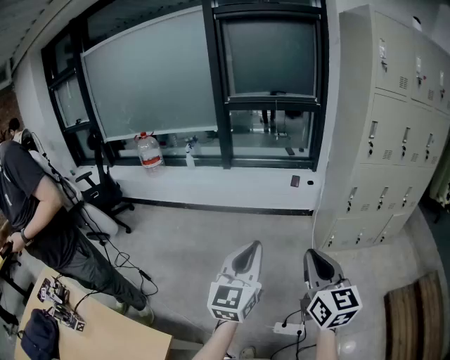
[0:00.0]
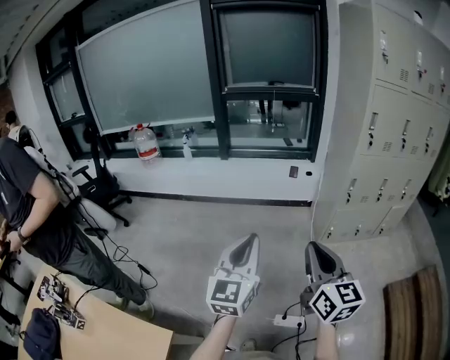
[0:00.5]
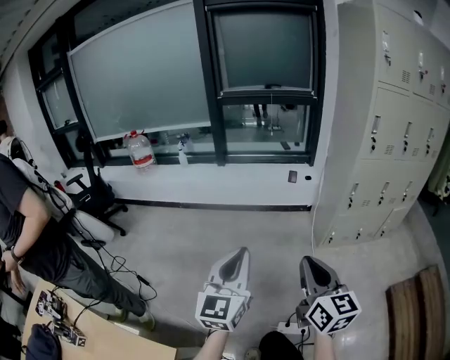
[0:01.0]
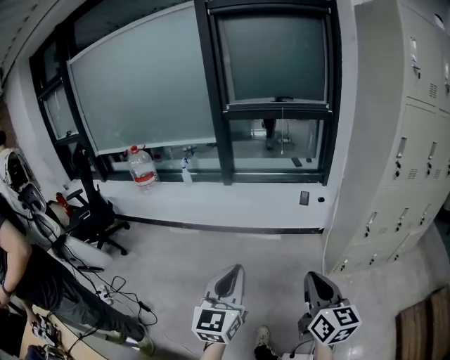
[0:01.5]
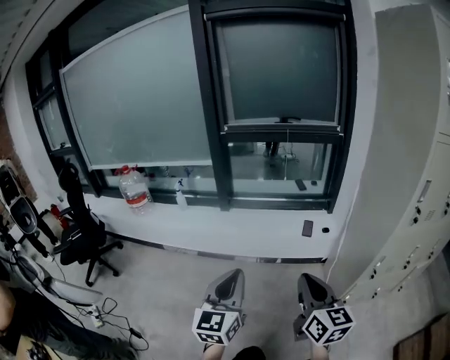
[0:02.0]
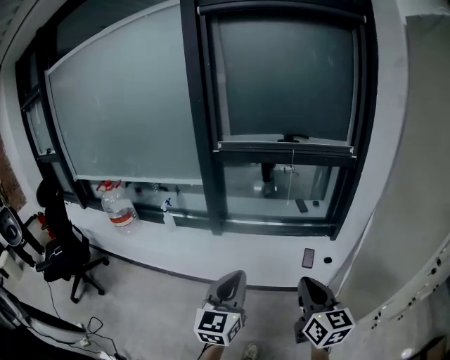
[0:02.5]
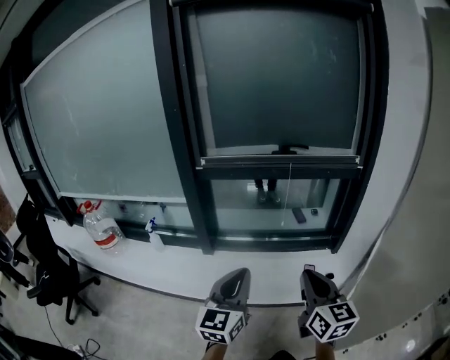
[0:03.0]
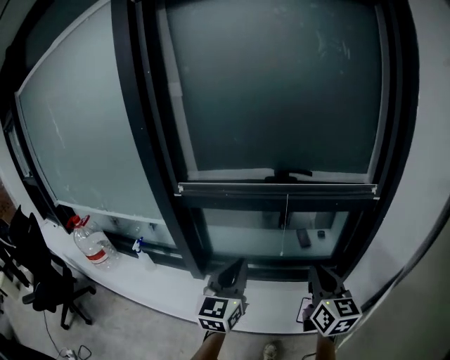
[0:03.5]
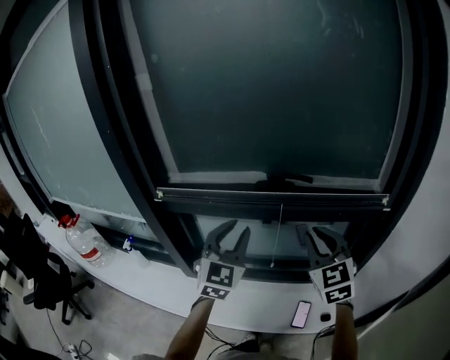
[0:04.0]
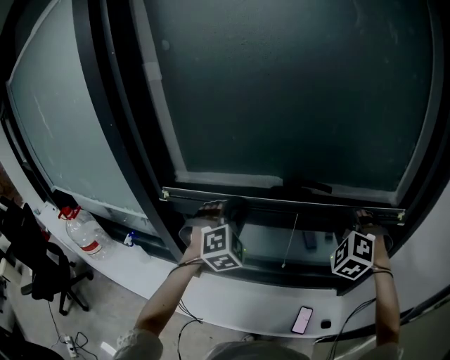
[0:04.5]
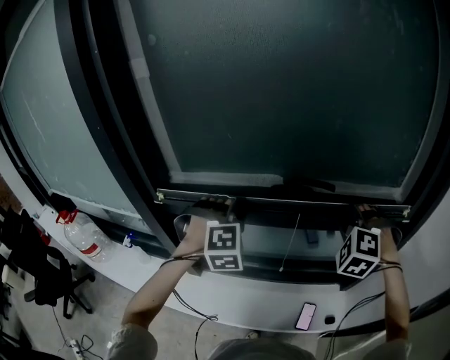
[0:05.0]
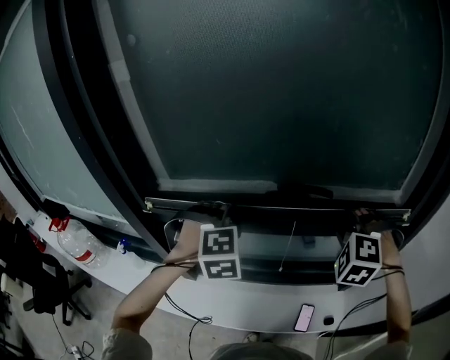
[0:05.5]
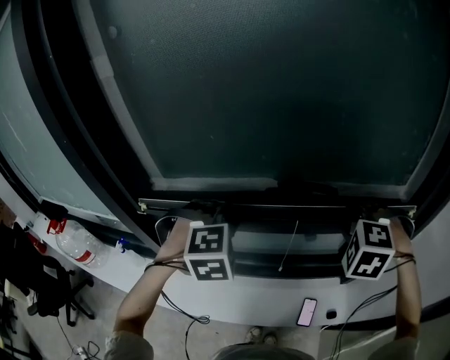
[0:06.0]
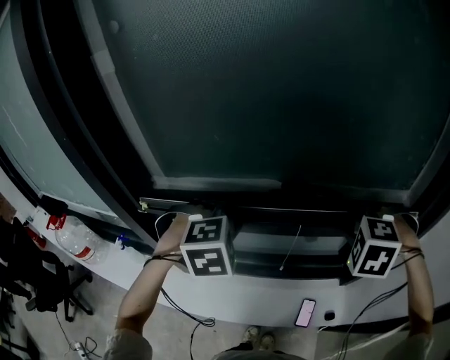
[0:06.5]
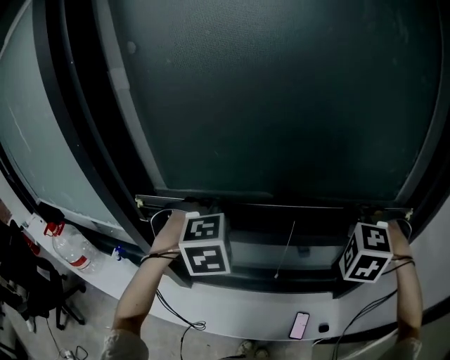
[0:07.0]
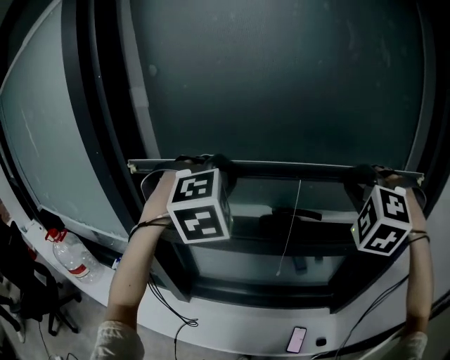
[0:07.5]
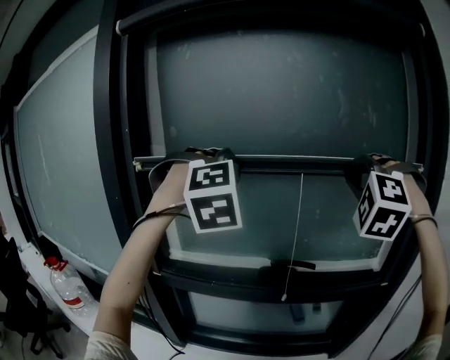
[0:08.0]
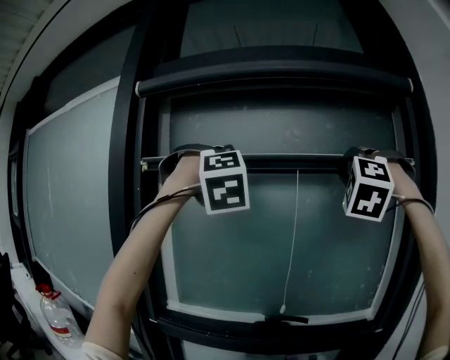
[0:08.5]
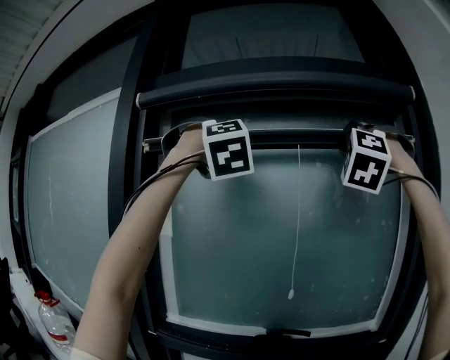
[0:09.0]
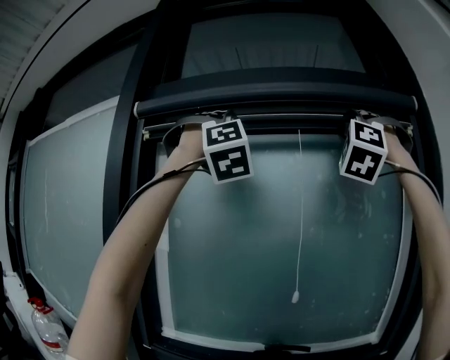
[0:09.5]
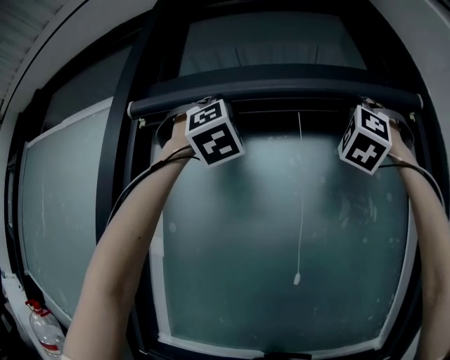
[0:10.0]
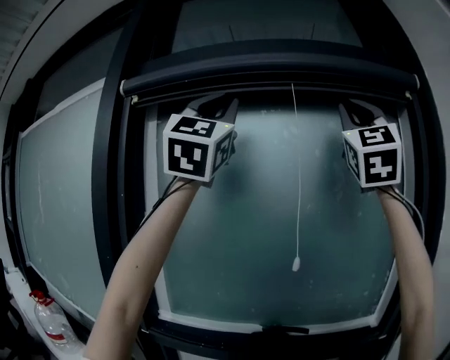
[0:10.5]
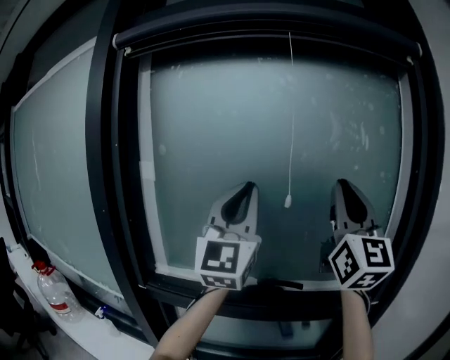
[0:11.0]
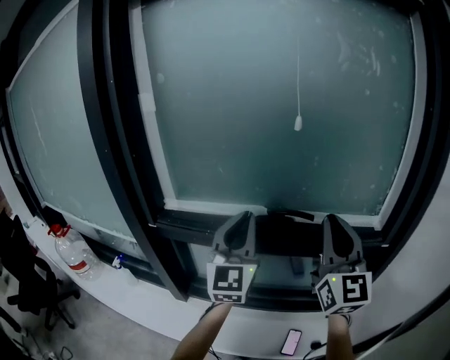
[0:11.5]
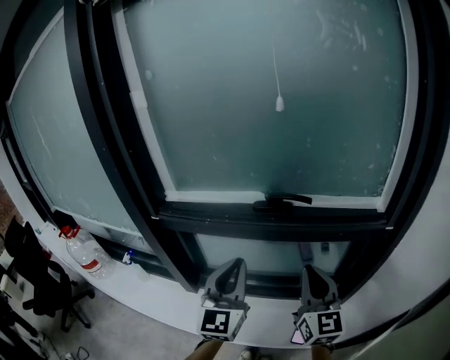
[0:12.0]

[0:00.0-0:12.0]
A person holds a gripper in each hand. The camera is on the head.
0:00.0 to 0:02.0: The two grippers go about 40 cm forward.
0:02.0 to 0:04.0: The two grippers travel together, forward, some 80 cm. The left gripper swivels roughly 30 degrees; the right gripper swivels some 40 degrees.
0:04.0 to 0:06.0: The grippers both shift forward by approximately 10 cm. The left gripper angles its fingers downward, by roughly 50 degrees, while the right gripper points its fingers some 40 degrees further downward.
0:06.0 to 0:08.0: The two grippers go roughly 35 cm upward. The left gripper angles its fingers upward, by roughly 30 degrees, while the right gripper tips its fingers upward by about 40 degrees.
0:08.0 to 0:10.0: The grippers both shift upward by some 35 cm. The right gripper tilts its fingers roughly 40 degrees upward; the left gripper points its fingers about 40 degrees further upward.
0:10.0 to 0:12.0: Both grippers travel together downward, approximately 70 cm. The left gripper rolls counterclockwise, seen from behind, by about 80 degrees. The right gripper rolls clockwise, seen from behind, by roughly 90 degrees.

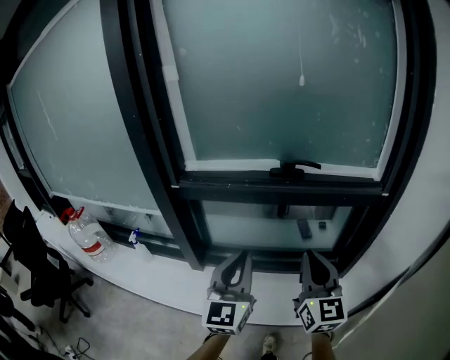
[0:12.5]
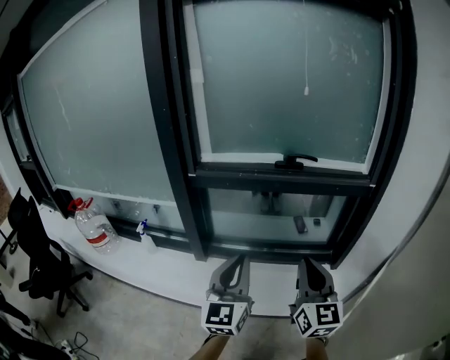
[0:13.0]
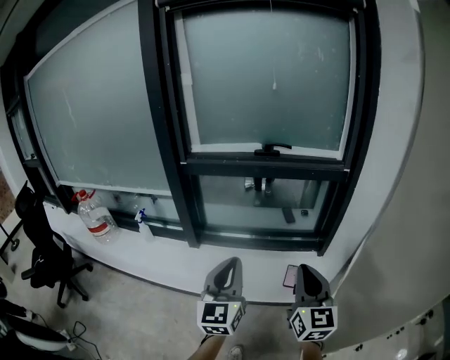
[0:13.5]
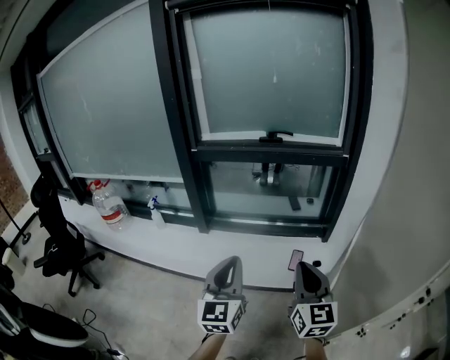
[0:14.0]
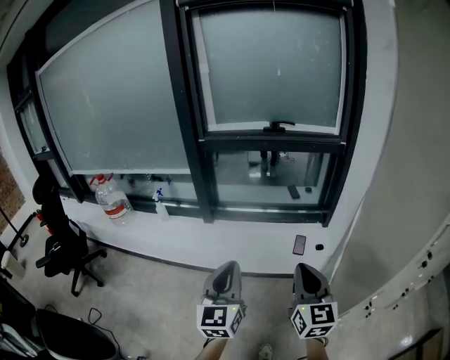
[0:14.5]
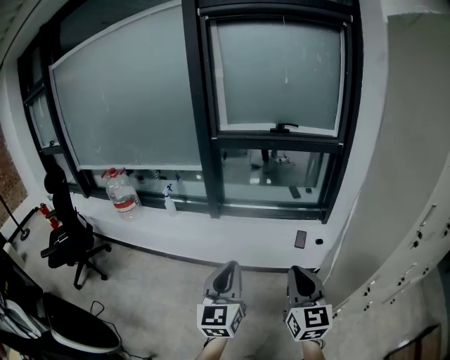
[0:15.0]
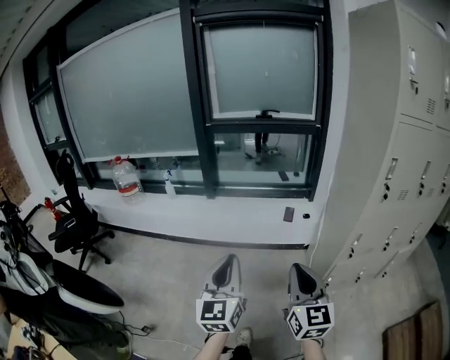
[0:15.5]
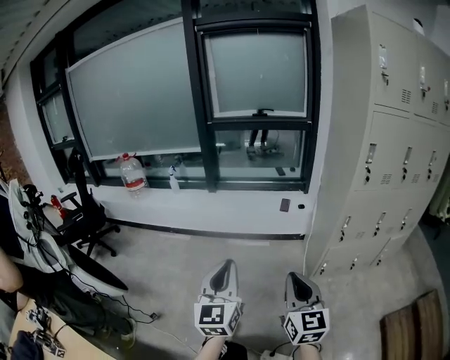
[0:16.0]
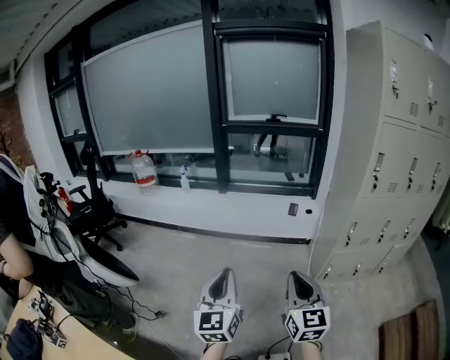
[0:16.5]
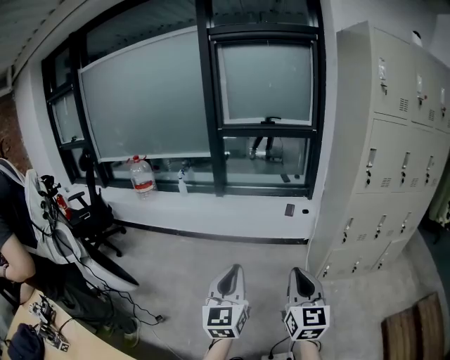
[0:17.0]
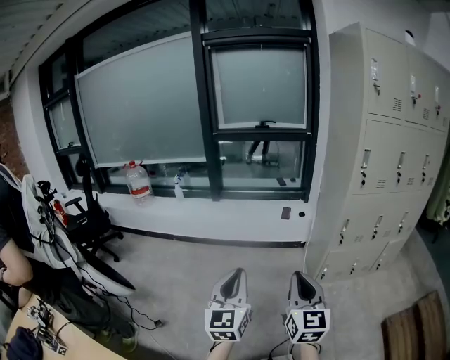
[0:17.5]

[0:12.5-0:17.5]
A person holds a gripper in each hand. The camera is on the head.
0:12.5 to 0:15.0: The two grippers travel together, backward, roughly 60 cm.
0:15.0 to 0:17.5: Both grippers are carried backward, roughly 40 cm.

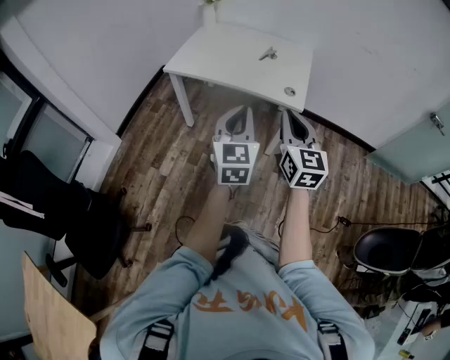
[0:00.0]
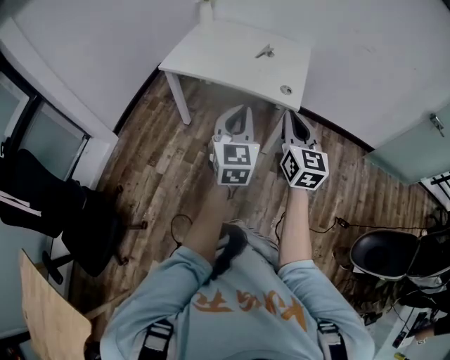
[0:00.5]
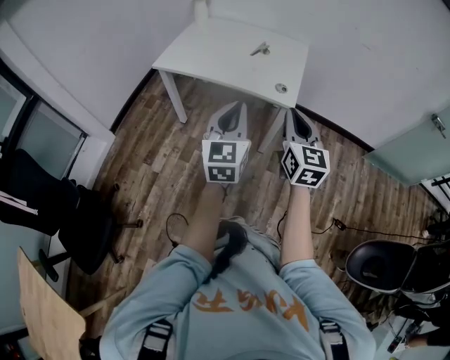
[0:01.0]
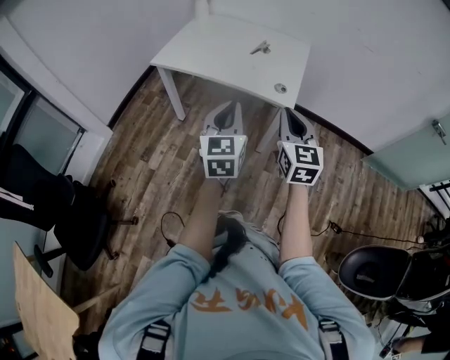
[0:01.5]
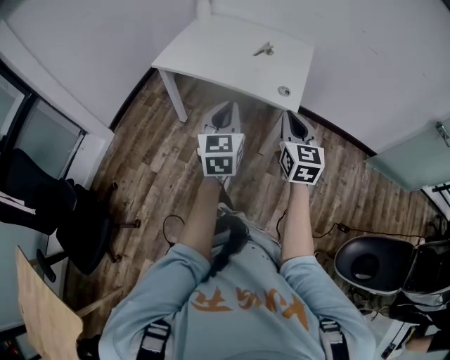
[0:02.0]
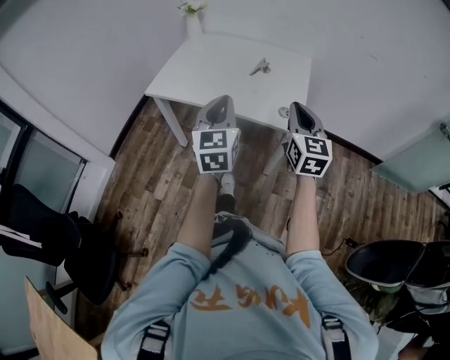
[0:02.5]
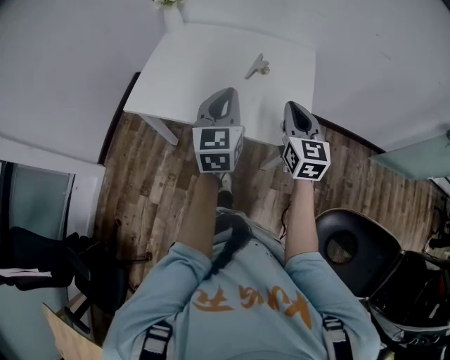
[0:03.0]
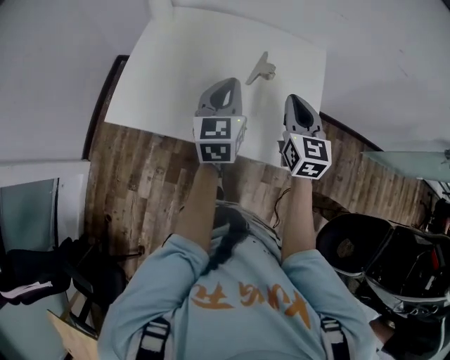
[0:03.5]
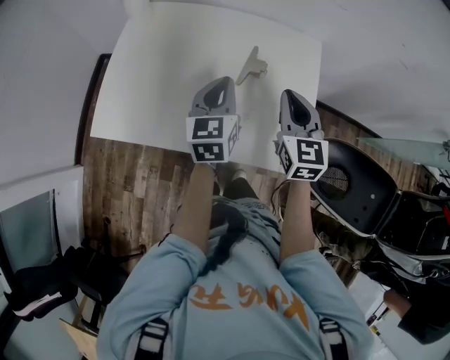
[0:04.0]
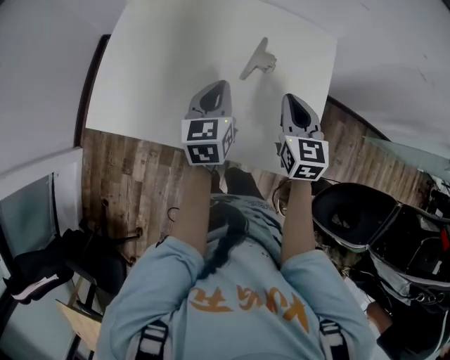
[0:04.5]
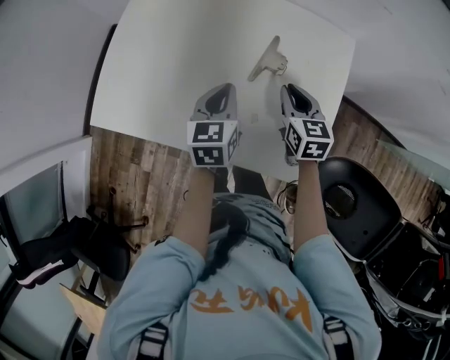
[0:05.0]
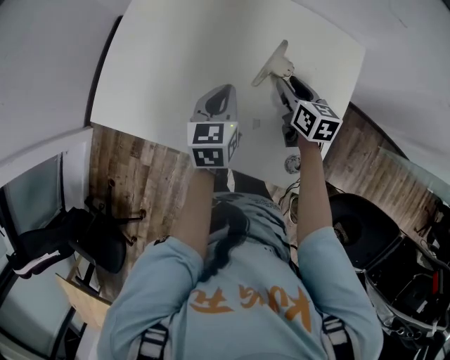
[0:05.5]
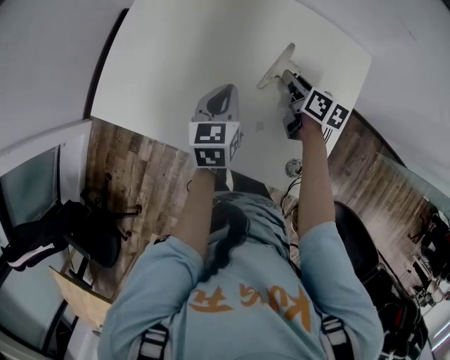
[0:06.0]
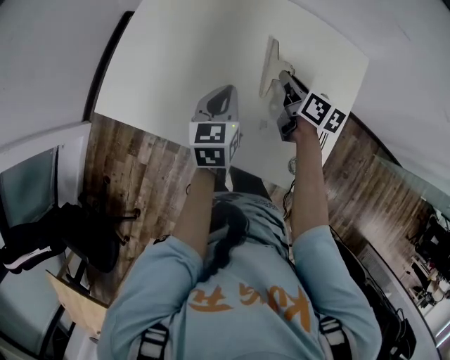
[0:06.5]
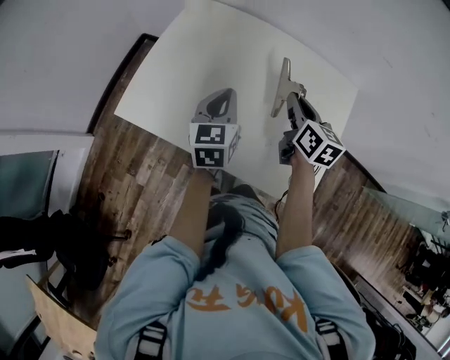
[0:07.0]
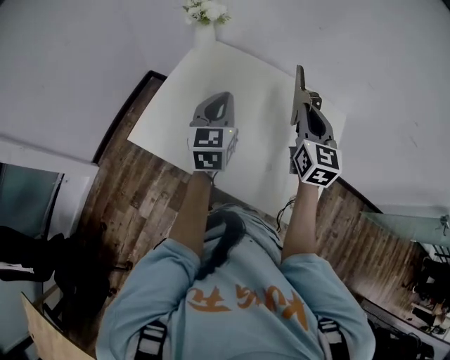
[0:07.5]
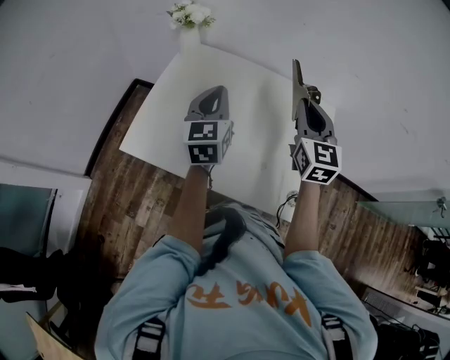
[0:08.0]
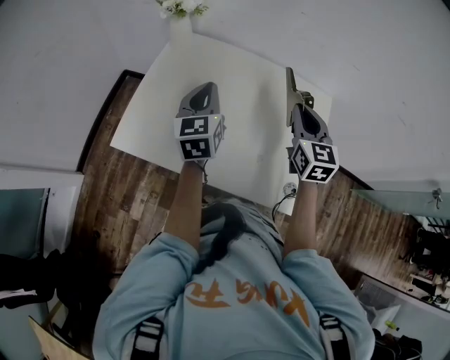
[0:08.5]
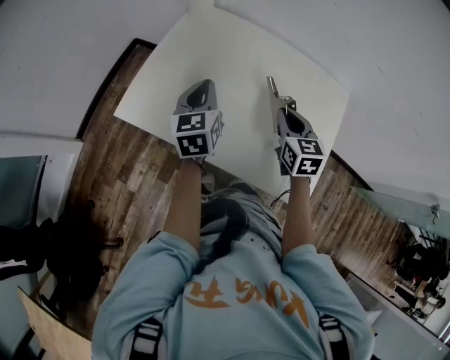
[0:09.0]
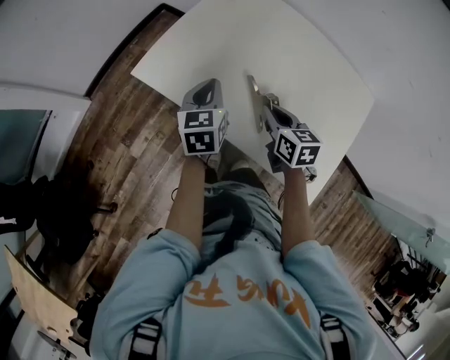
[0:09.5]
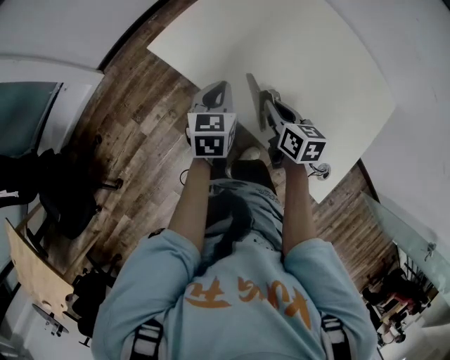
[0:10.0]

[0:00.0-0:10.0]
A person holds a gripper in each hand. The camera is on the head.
0:00.0 to 0:02.0: The left gripper is displaced forward by roughly 5 cm. The right gripper heads forward, to the right and downward, covering approximately 15 cm.
0:02.0 to 0:04.0: Both grippers are carried forward, some 50 cm.
0:04.0 to 0:06.0: The left gripper goes about 10 cm downward, while the right gripper shifts roughly 25 cm downward and forward, twists approximately 40 degrees clockwise, seen from behind, and opens its fingers.
0:06.0 to 0:08.0: The left gripper goes some 25 cm upward and to the left, and rotates about 30 degrees. Meanwhile the right gripper moves upward, approximately 30 cm, and rotates around the line of its fingers by about 50 degrees, counterclockwise from behind.
0:08.0 to 0:10.0: Both grippers move downward, roughly 25 cm. The right gripper rotates about 60 degrees. Meanwhile the left gripper rotates approximately 30 degrees.
